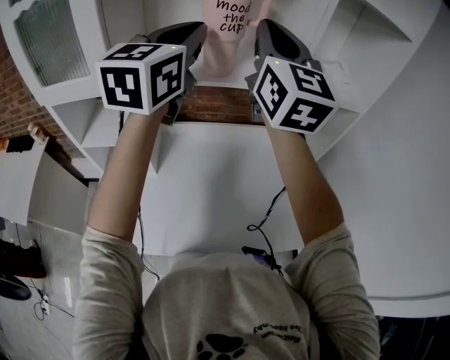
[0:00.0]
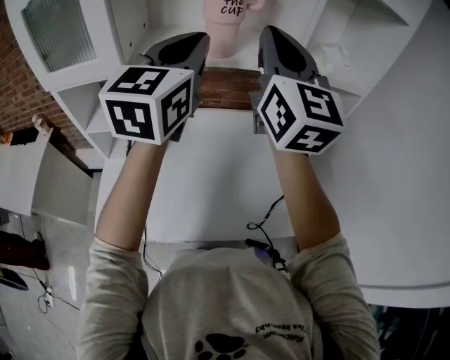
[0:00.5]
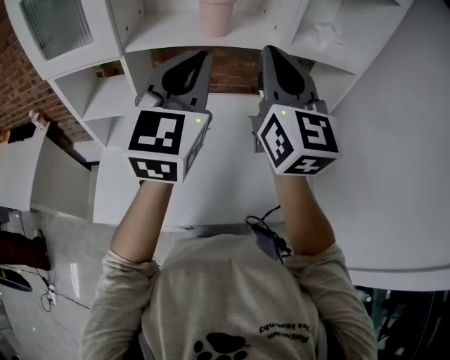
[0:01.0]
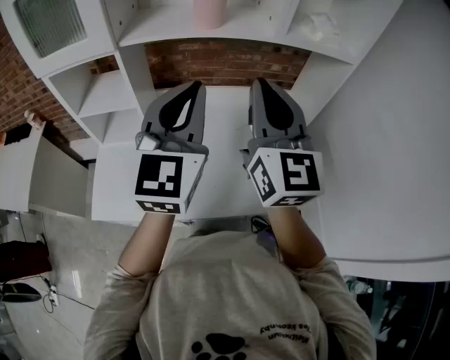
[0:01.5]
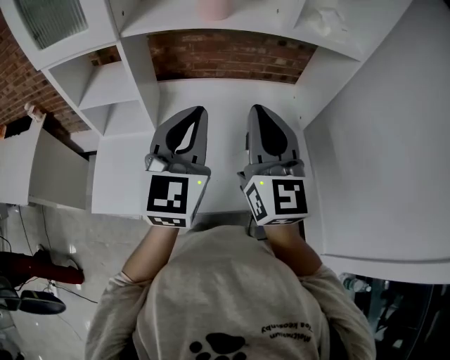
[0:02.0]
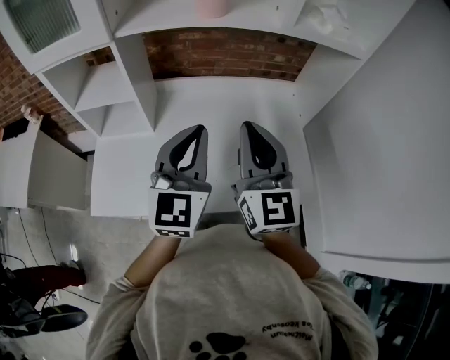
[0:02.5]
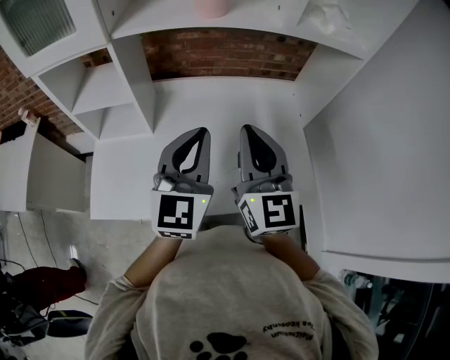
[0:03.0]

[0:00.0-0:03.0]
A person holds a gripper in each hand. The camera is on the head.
0:00.0 to 0:01.5: Both grippers move backward and downward, approximately 20 cm.
0:01.5 to 0:03.0: The two grippers go roughly 10 cm downward.

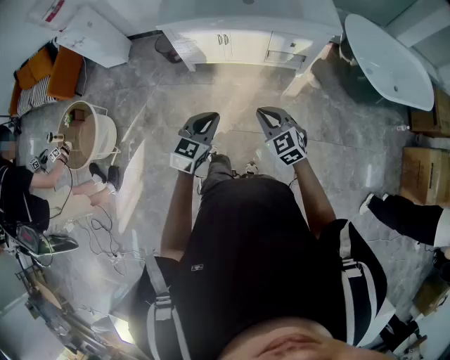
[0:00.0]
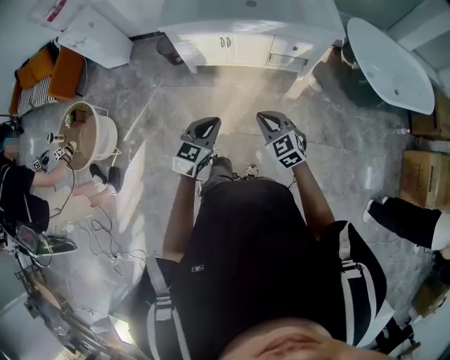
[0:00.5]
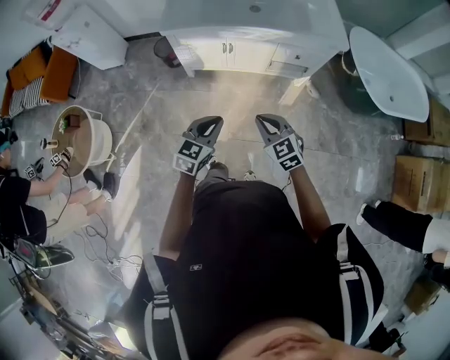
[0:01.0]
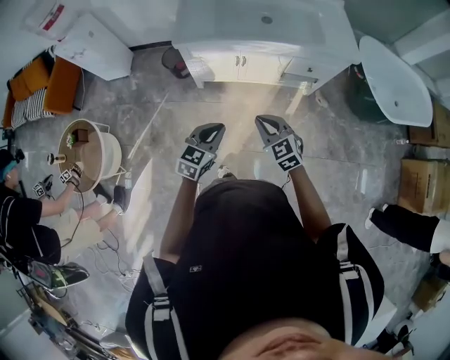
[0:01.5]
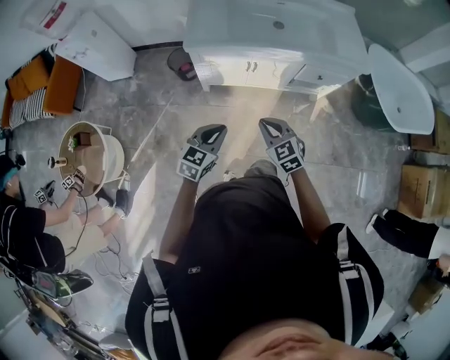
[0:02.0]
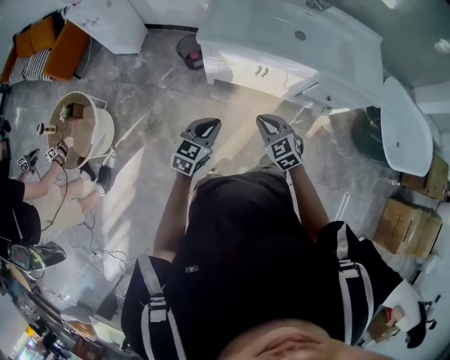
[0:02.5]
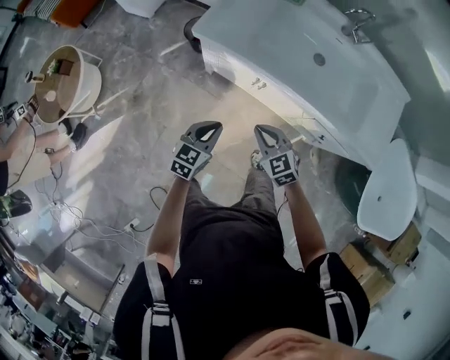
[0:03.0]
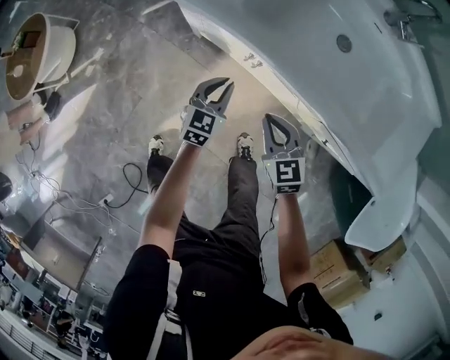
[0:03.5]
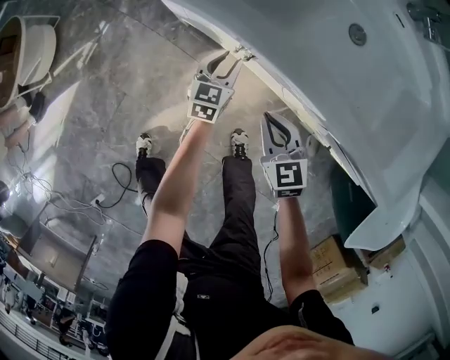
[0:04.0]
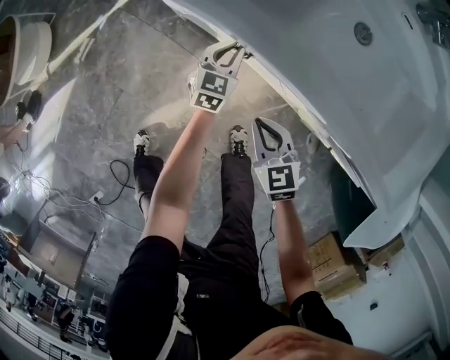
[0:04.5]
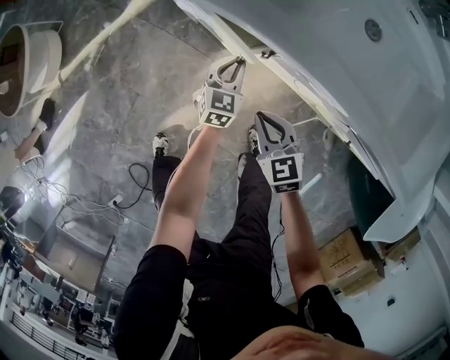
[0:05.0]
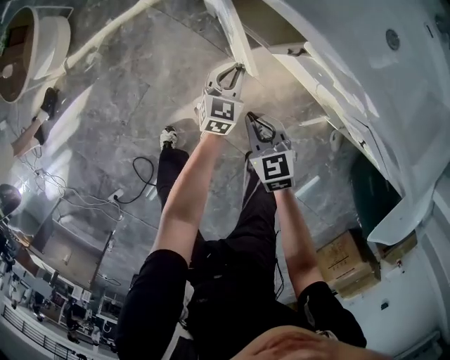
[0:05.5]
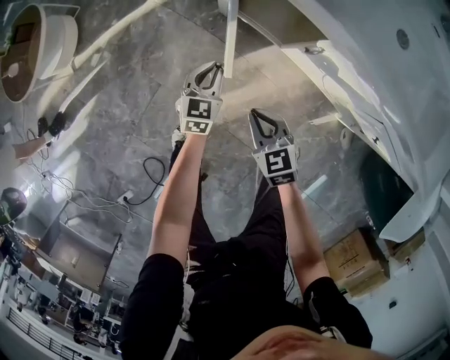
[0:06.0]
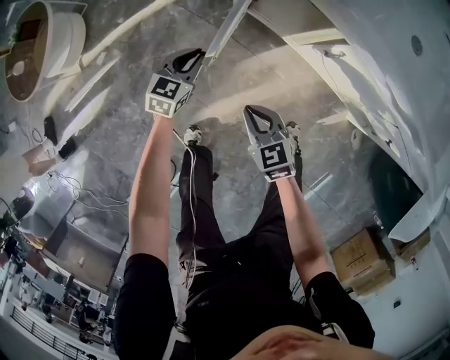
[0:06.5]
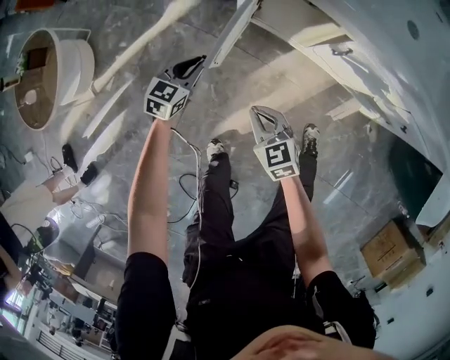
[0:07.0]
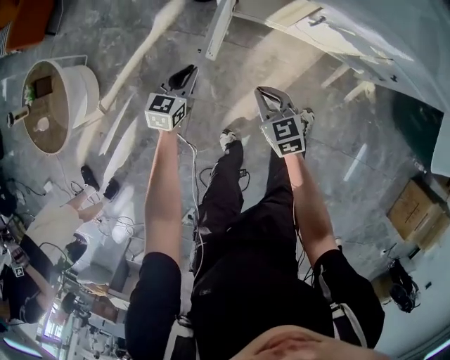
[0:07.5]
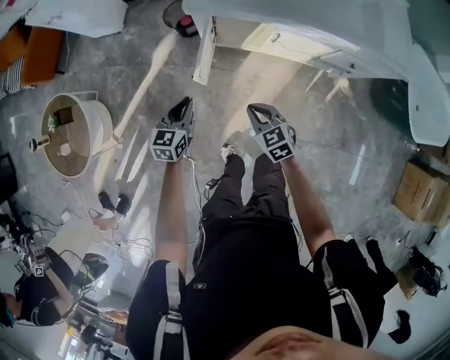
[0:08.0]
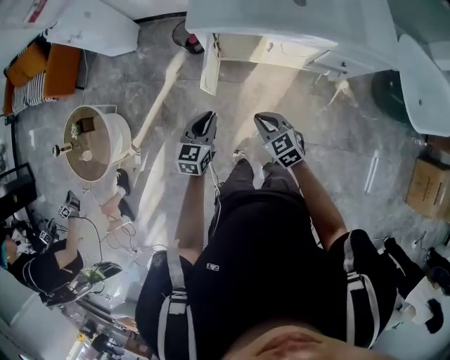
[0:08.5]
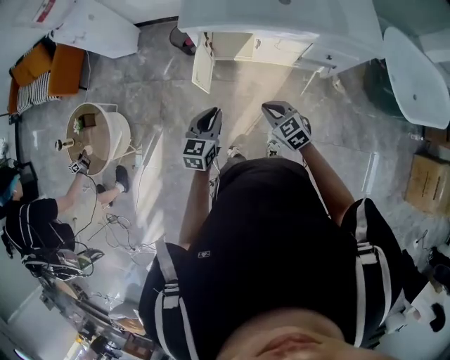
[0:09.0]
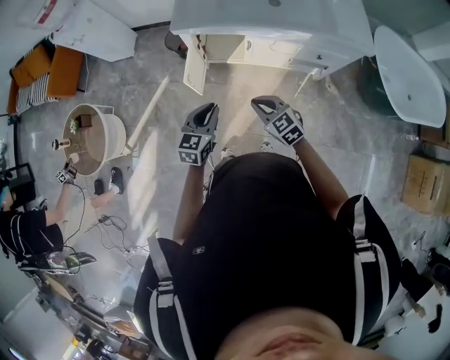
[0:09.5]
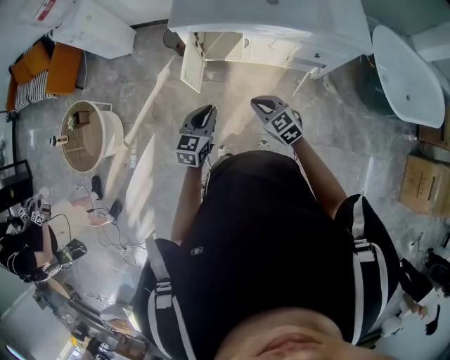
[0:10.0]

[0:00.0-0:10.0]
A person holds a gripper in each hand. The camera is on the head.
0:00.0 to 0:02.0: The grippers both shift to the left and forward by approximately 25 cm.
0:02.0 to 0:04.0: The left gripper ends up about 60 cm from where it was, changes its angle by approximately 50 degrees, and opens its fingers. The right gripper shifts by roughly 40 cm, and changes its angle by approximately 20 degrees.
0:04.0 to 0:06.0: Both grippers travel together to the left, approximately 20 cm.
0:06.0 to 0:08.0: The two grippers go some 20 cm upward. The right gripper rotates about 20 degrees. The left gripper swivels roughly 20 degrees.
0:08.0 to 0:10.0: The left gripper shifts about 30 cm to the right, upward and backward. Meanwhile the right gripper heads upward, to the right and backward, covering roughly 20 cm.

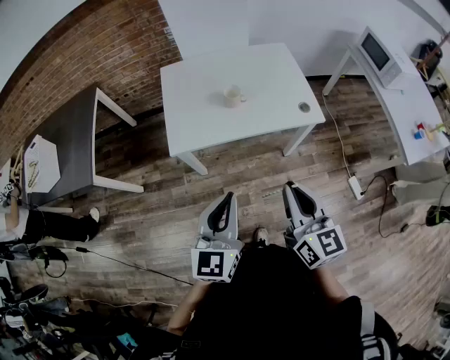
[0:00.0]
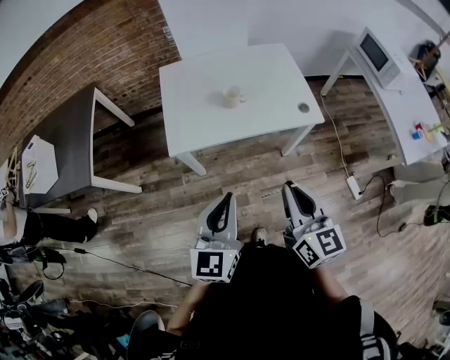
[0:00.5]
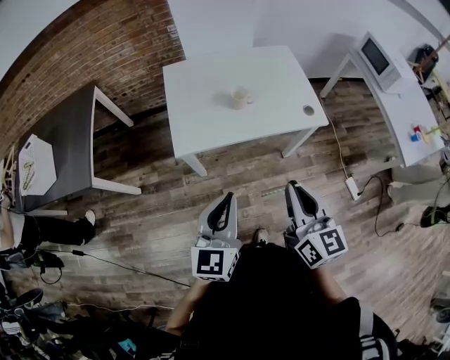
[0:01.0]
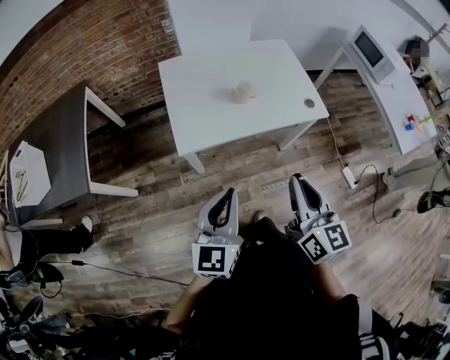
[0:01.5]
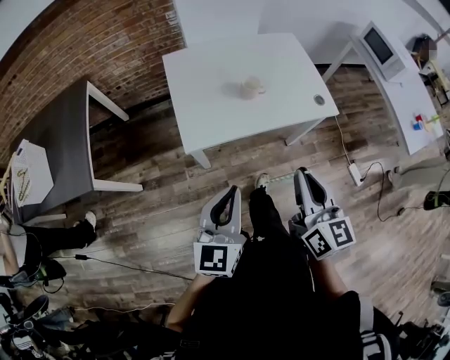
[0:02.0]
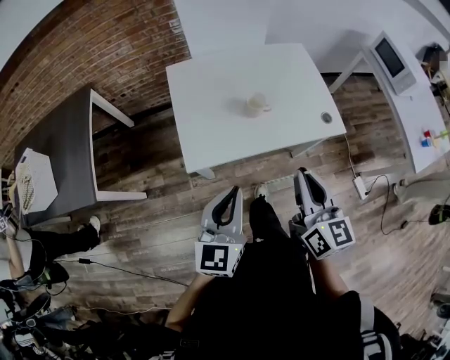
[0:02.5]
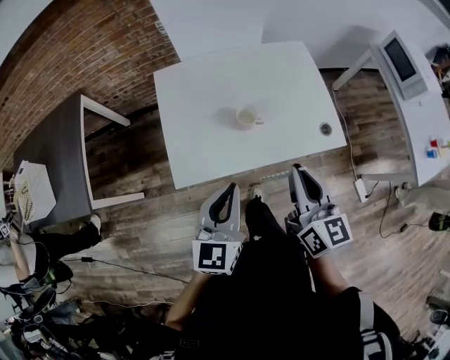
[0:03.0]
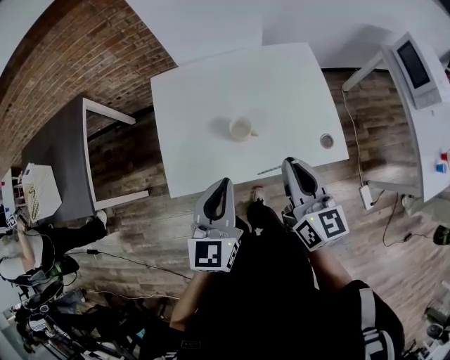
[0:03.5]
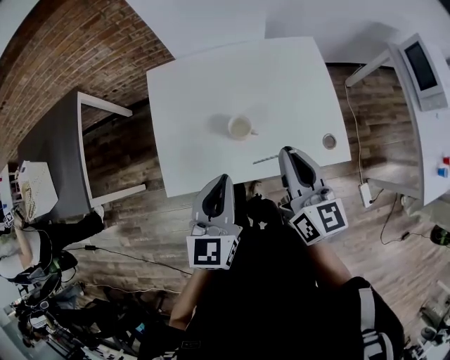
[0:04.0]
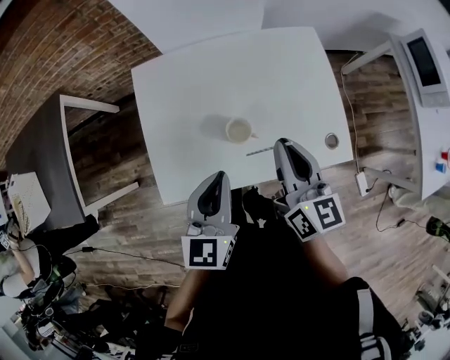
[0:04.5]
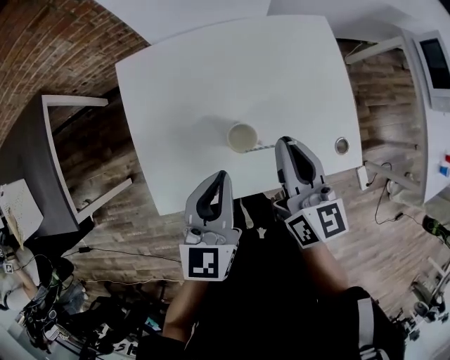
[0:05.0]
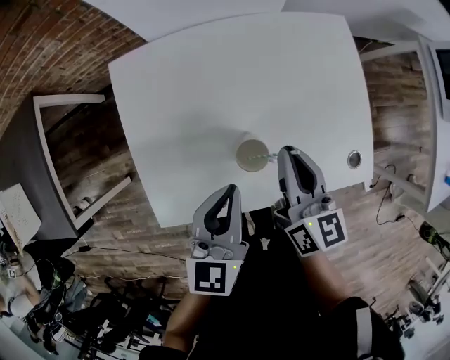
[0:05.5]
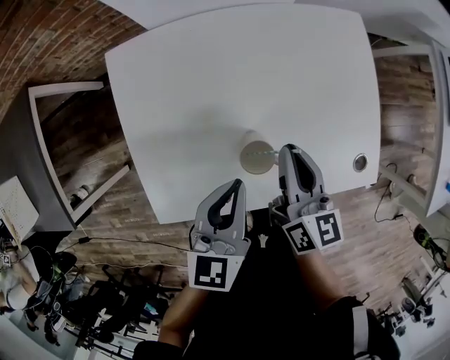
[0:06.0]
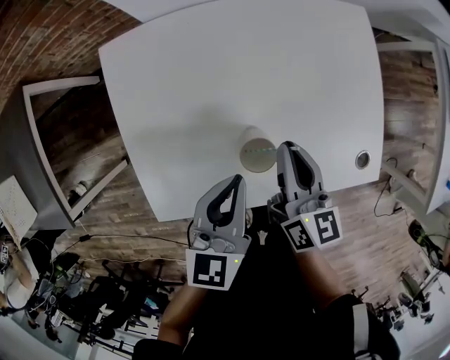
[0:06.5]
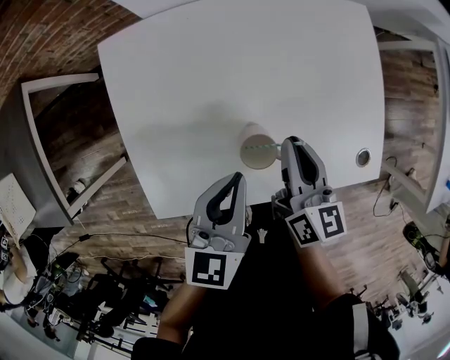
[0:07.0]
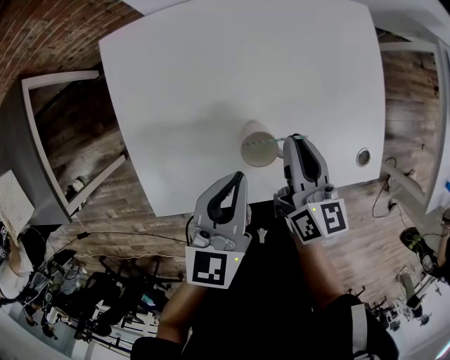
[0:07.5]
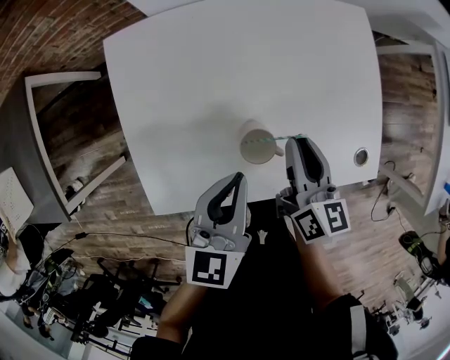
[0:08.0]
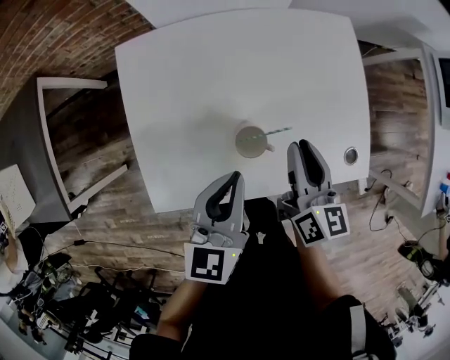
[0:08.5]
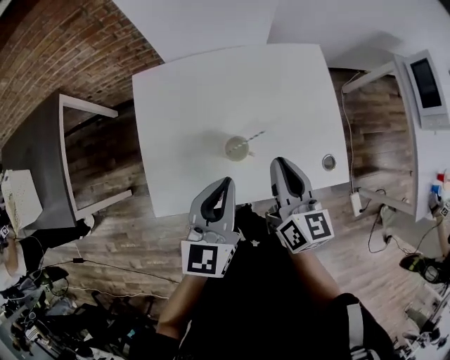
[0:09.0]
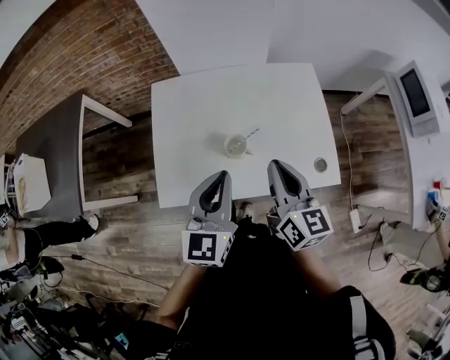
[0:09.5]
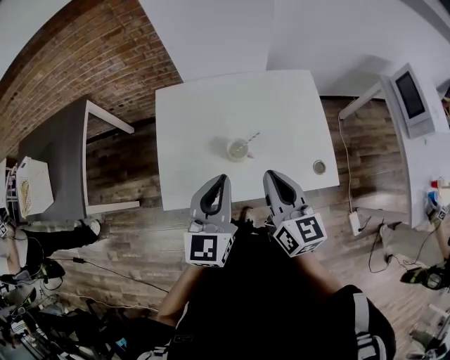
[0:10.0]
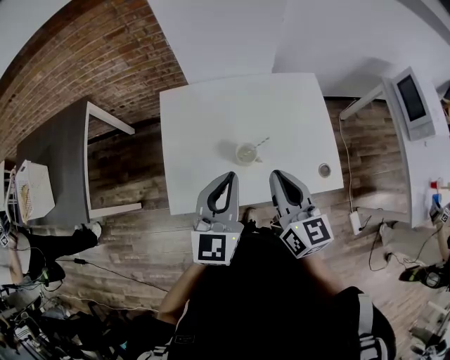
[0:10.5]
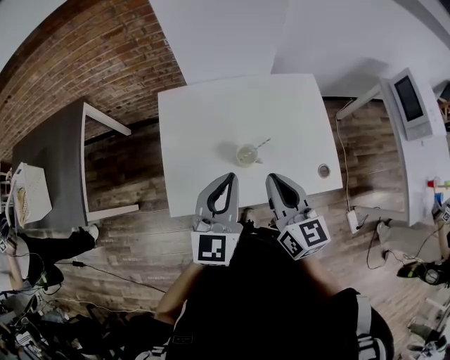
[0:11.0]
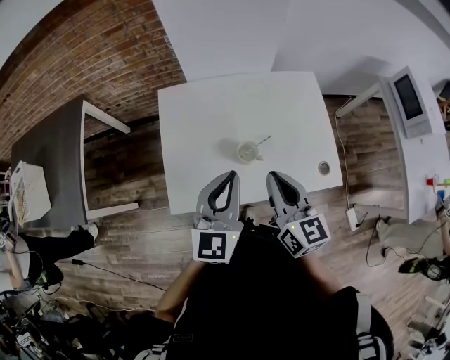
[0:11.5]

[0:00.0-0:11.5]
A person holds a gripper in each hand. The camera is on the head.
0:00.0 to 0:02.0: Both grippers travel together to the left, approximately 10 cm.
0:02.0 to 0:04.0: The right gripper heads forward, covering roughly 30 cm, while the left gripper heads forward and to the right, covering about 25 cm.
0:04.0 to 0:06.0: The left gripper moves forward and downward, some 15 cm; the right gripper moves downward and forward, some 20 cm.
0:06.0 to 0:07.5: The grippers move only a little.
0:07.5 to 0:09.5: The grippers both shift upward and backward by about 20 cm. The left gripper rotates roughly 20 degrees.
0:09.5 to 0:11.5: The left gripper changes place by approximately 5 cm. The right gripper heads to the left, covering roughly 5 cm.

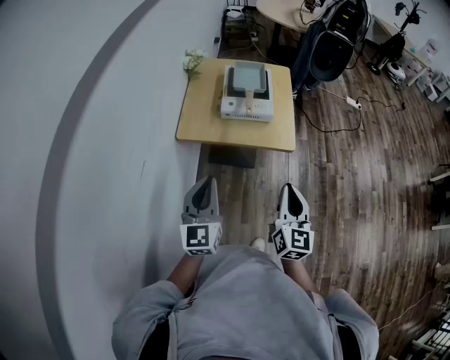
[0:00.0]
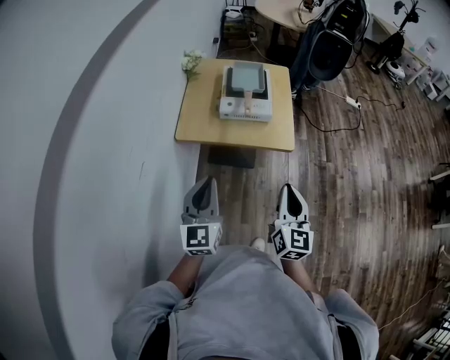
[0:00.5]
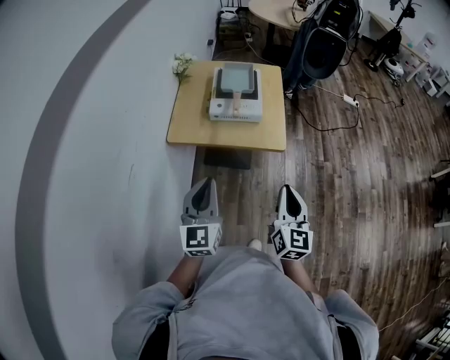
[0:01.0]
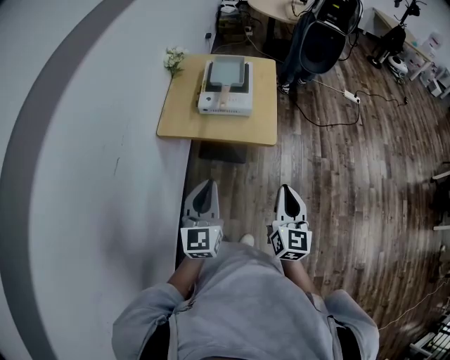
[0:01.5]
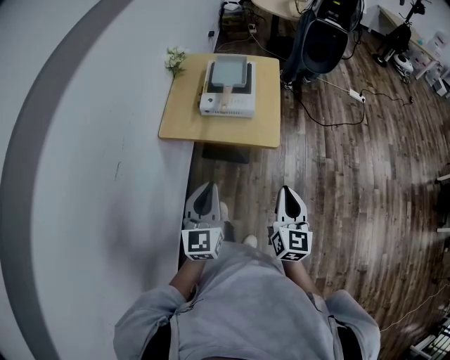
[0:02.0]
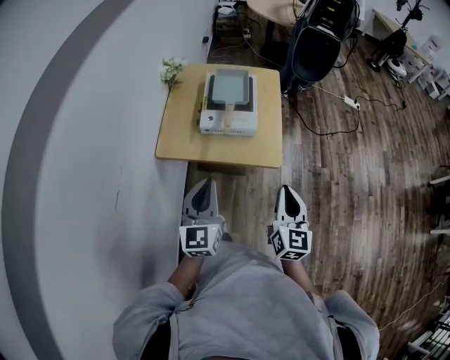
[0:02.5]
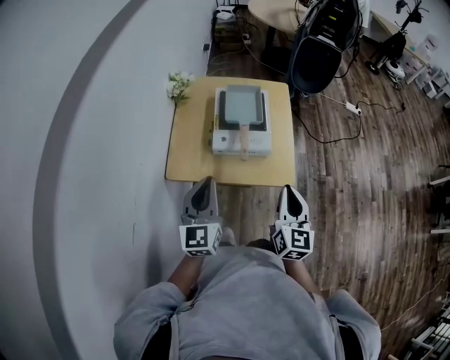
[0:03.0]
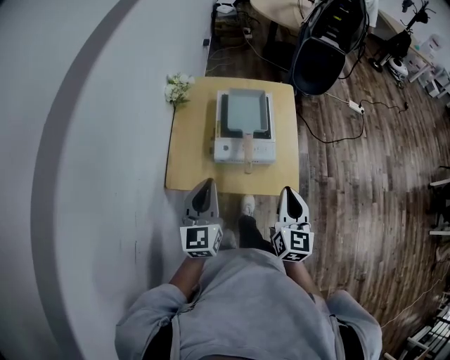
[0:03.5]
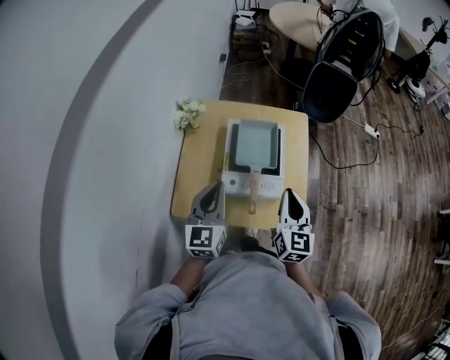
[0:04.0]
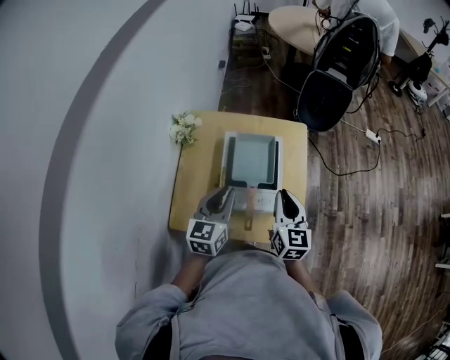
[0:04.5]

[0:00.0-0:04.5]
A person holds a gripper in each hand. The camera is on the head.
0:00.0 to 0:02.0: The two grippers go some 10 cm to the right.
0:02.0 to 0:04.5: The pair of grippers is taken forward, approximately 40 cm. The left gripper swivels some 20 degrees.
